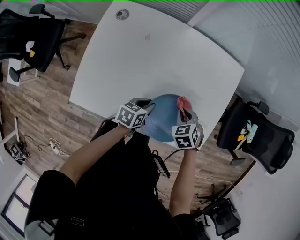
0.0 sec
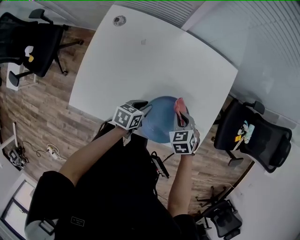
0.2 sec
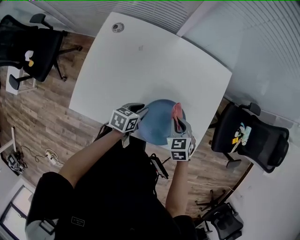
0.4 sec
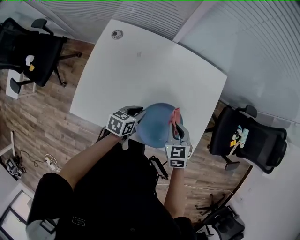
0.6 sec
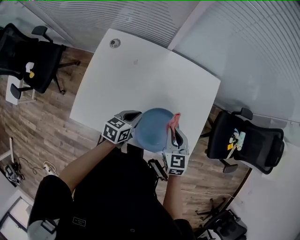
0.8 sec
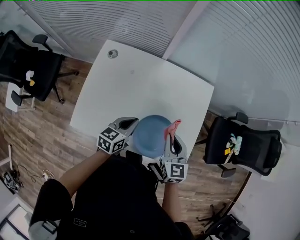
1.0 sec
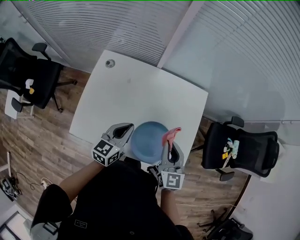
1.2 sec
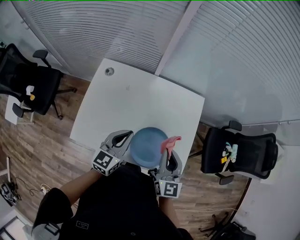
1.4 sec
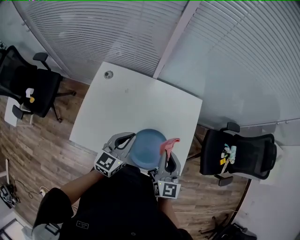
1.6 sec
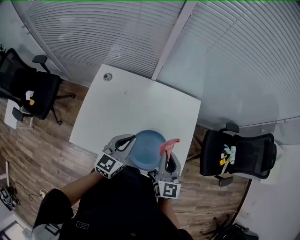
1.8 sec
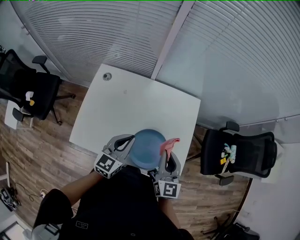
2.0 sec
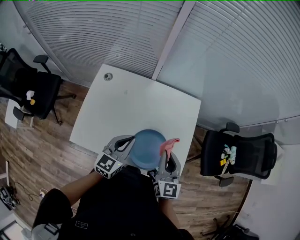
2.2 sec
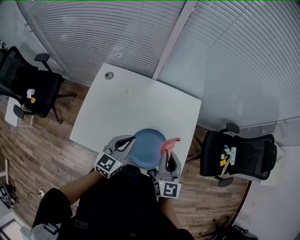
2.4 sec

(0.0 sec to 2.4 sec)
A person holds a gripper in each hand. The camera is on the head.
0.0 sec - 1.2 sec: The two grippers go some 25 cm upward. The left gripper turns by about 40 degrees. The right gripper tilts its fingers roughly 50 degrees upward.
1.2 sec - 2.4 sec: The left gripper ends up approximately 5 cm from where it was.

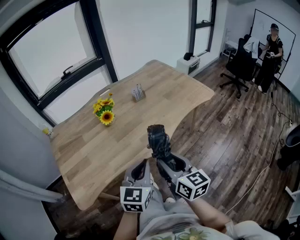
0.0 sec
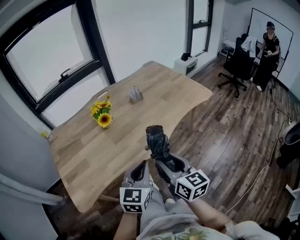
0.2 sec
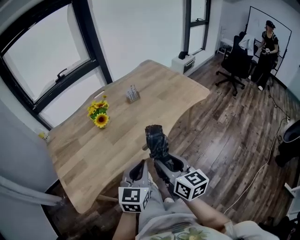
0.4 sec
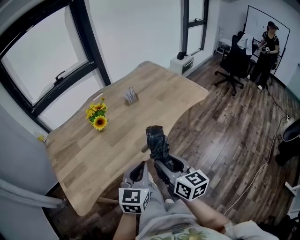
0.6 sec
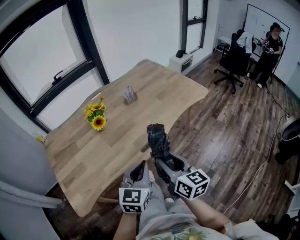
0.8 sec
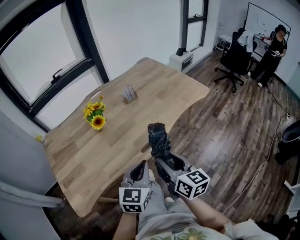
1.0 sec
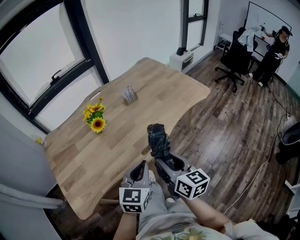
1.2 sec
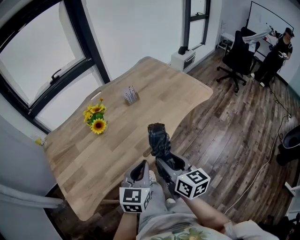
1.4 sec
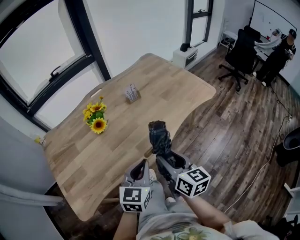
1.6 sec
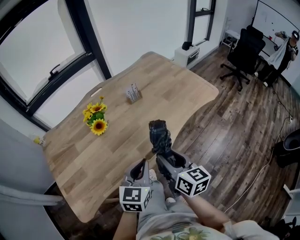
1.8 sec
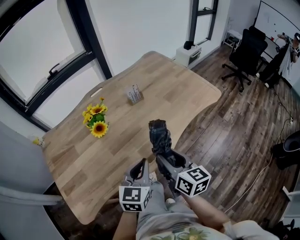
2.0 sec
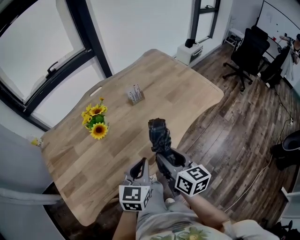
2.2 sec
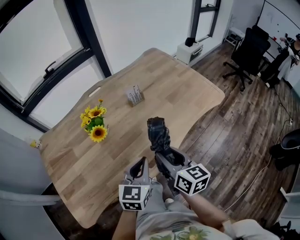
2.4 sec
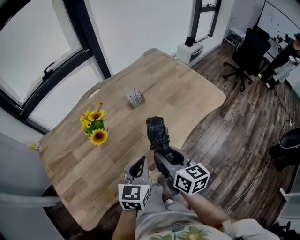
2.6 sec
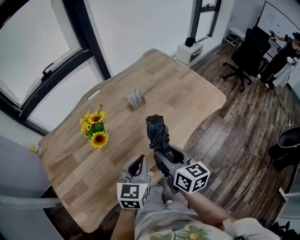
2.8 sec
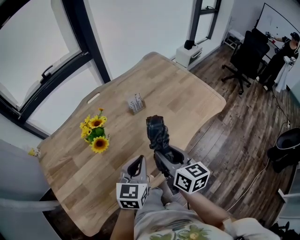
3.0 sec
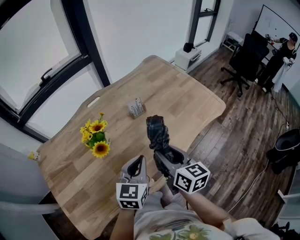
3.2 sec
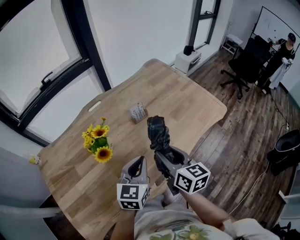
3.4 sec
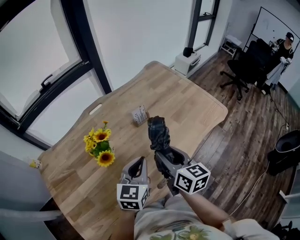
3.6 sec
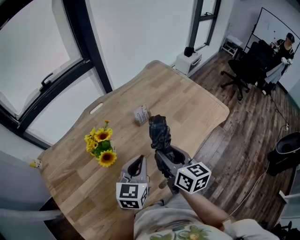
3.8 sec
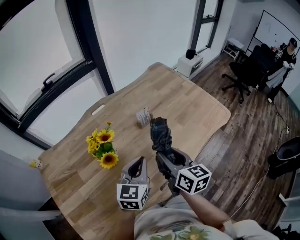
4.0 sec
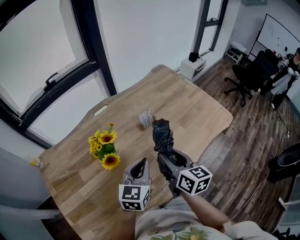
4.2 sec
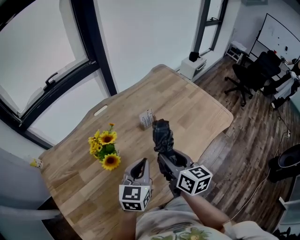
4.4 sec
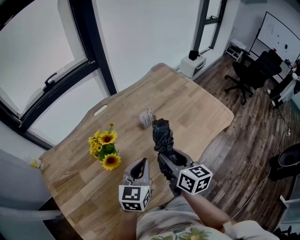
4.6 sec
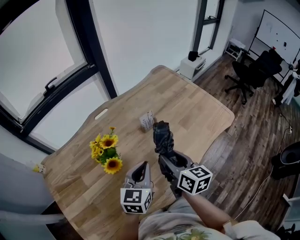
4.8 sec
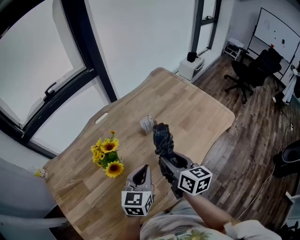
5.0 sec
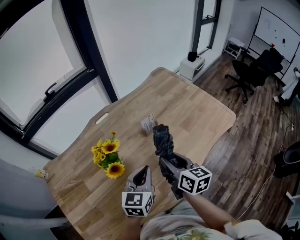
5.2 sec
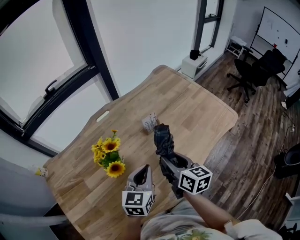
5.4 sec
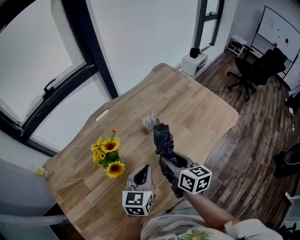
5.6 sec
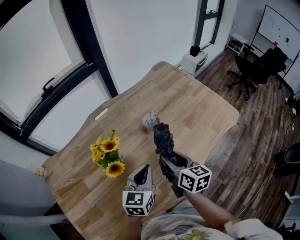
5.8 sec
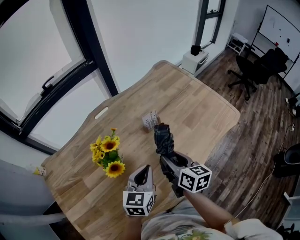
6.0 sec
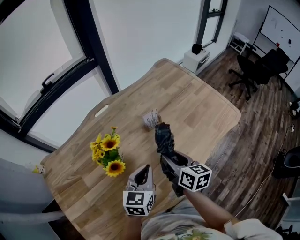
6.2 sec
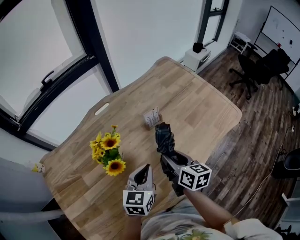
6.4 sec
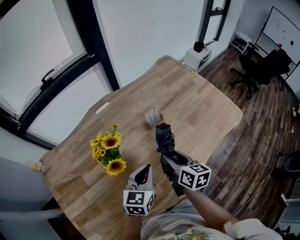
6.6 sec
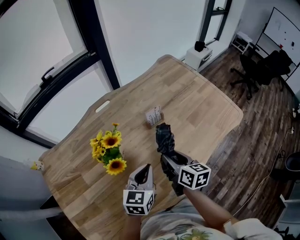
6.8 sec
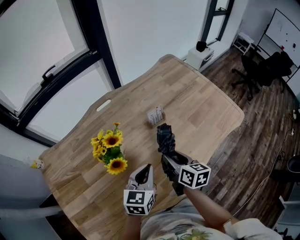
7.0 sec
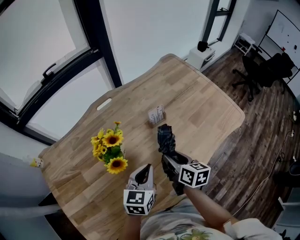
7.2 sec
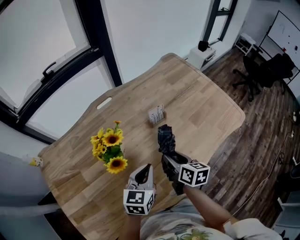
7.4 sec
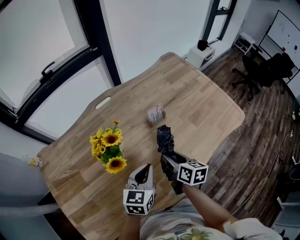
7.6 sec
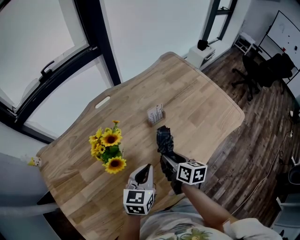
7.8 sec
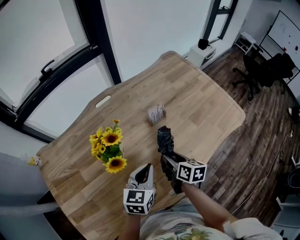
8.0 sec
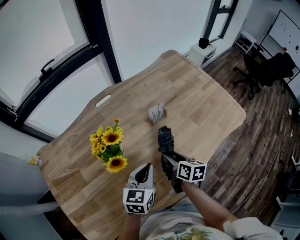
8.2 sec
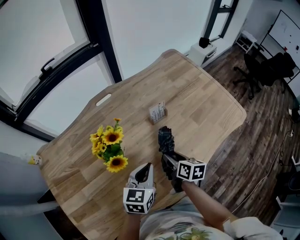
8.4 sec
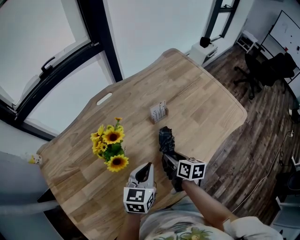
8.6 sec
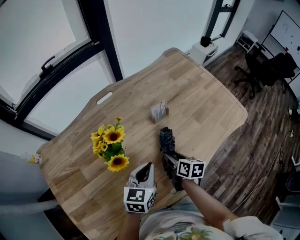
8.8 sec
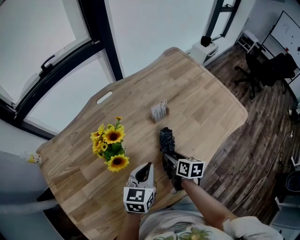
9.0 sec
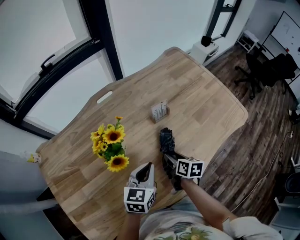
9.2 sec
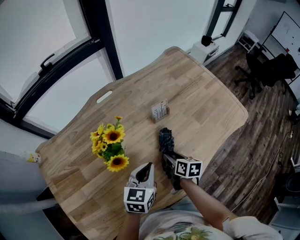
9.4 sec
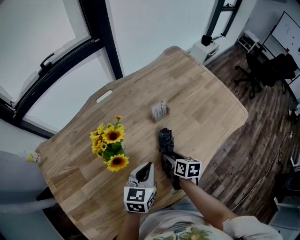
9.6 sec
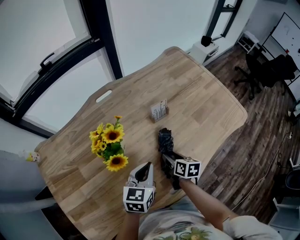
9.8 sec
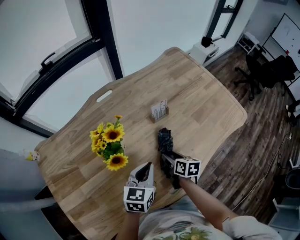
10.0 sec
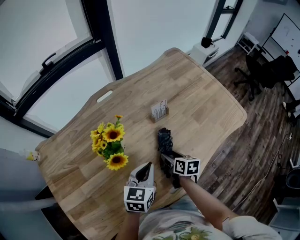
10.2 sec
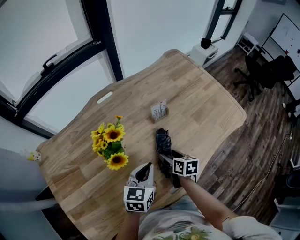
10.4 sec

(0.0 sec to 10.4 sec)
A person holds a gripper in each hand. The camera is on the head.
0.0 sec - 1.4 sec: Both grippers travel together forward, approximately 5 cm.
1.4 sec - 3.0 sec: Both grippers move forward, about 20 cm.
3.0 sec - 4.4 sec: Both grippers travel together forward, roughly 5 cm.
4.4 sec - 6.0 sec: The right gripper moves downward, about 5 cm.
6.0 sec - 7.4 sec: The right gripper heads downward, covering roughly 5 cm.
7.4 sec - 9.0 sec: The right gripper moves downward, some 10 cm.
9.0 sec - 10.4 sec: The right gripper opens.

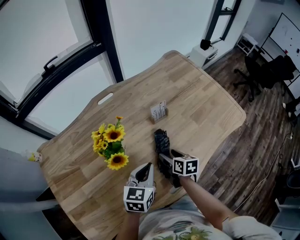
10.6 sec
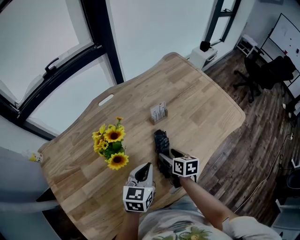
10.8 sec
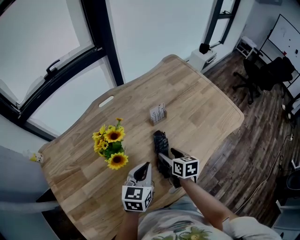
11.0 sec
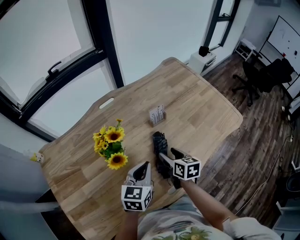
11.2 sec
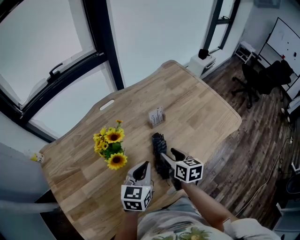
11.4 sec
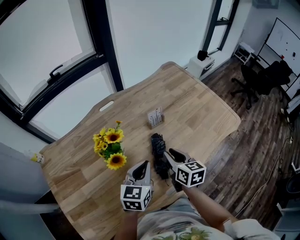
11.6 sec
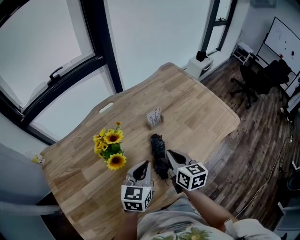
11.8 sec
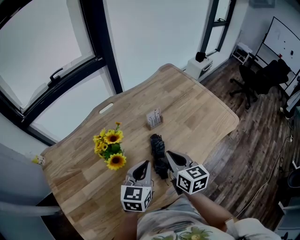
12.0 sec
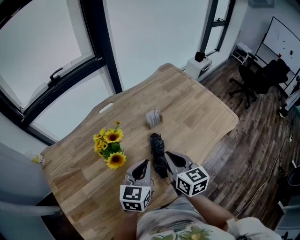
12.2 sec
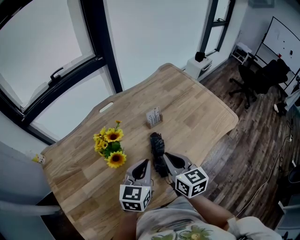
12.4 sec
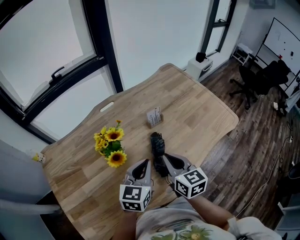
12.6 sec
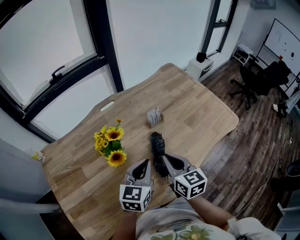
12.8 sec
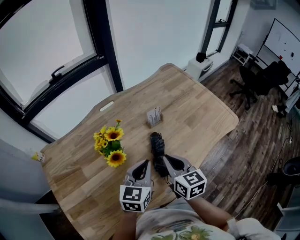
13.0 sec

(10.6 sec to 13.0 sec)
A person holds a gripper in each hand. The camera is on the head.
10.6 sec - 11.8 sec: The right gripper moves upward, approximately 15 cm, turns by about 20 degrees, and closes up. The left gripper travels upward by roughly 5 cm.
11.8 sec - 13.0 sec: The right gripper moves roughly 5 cm.

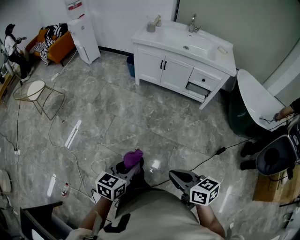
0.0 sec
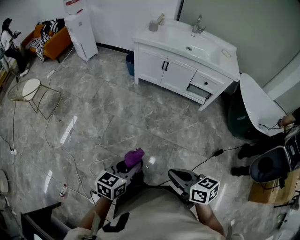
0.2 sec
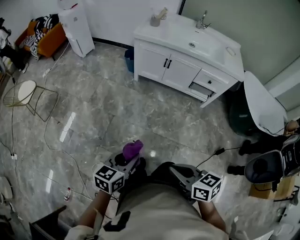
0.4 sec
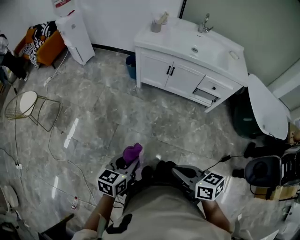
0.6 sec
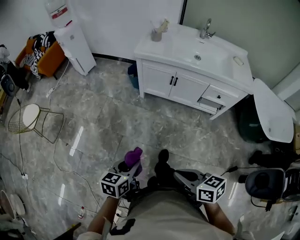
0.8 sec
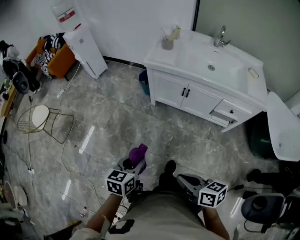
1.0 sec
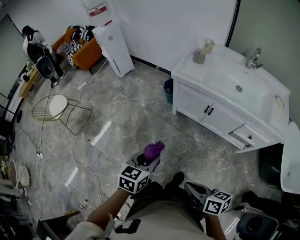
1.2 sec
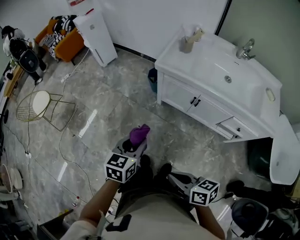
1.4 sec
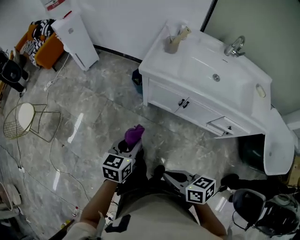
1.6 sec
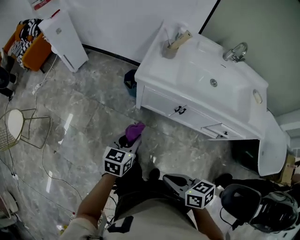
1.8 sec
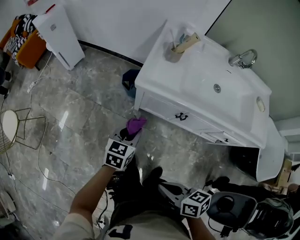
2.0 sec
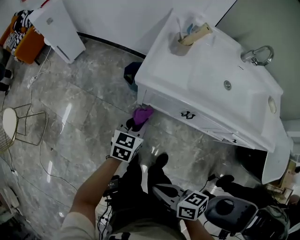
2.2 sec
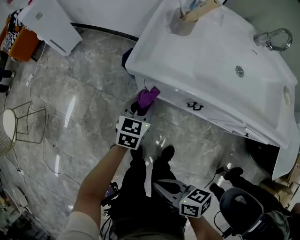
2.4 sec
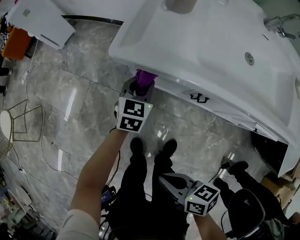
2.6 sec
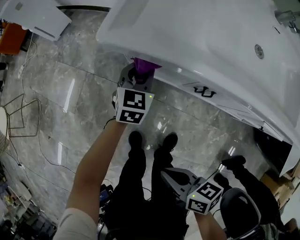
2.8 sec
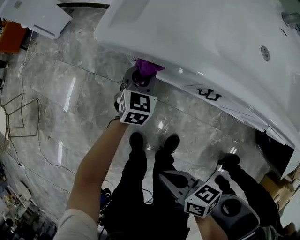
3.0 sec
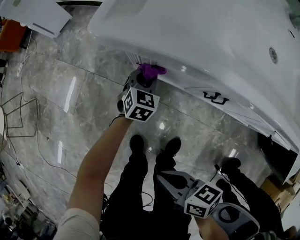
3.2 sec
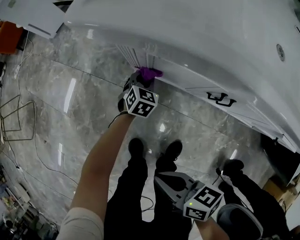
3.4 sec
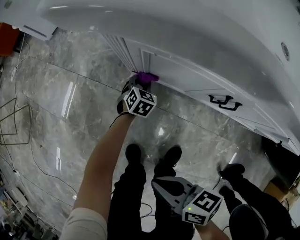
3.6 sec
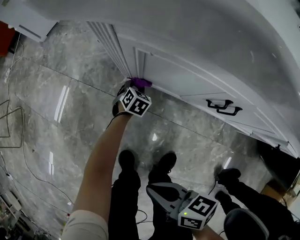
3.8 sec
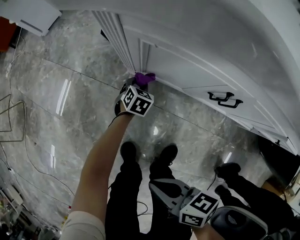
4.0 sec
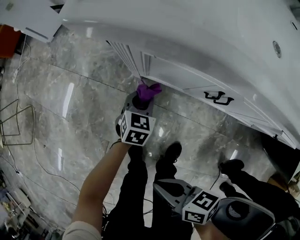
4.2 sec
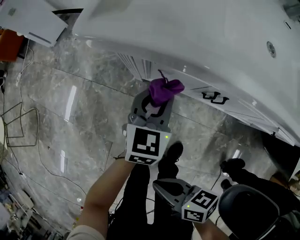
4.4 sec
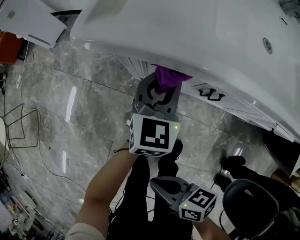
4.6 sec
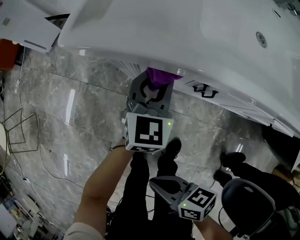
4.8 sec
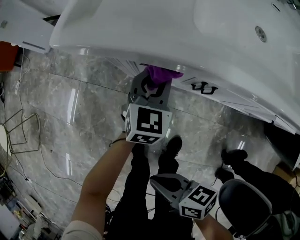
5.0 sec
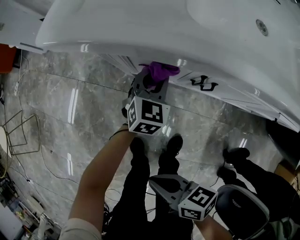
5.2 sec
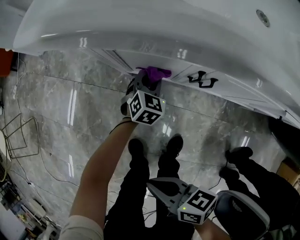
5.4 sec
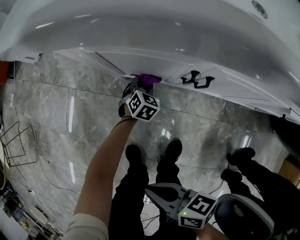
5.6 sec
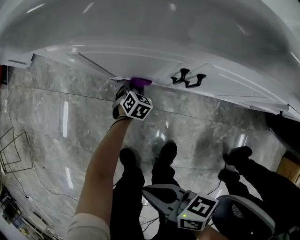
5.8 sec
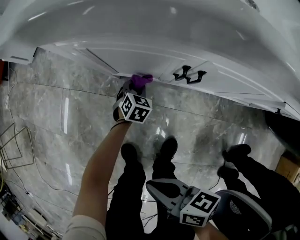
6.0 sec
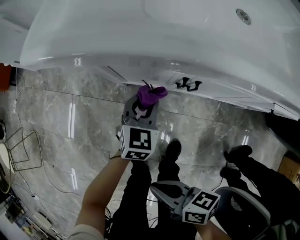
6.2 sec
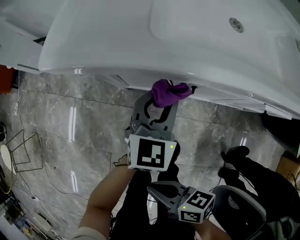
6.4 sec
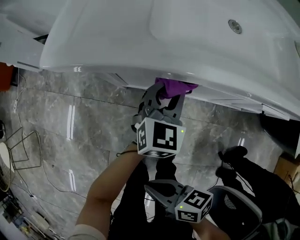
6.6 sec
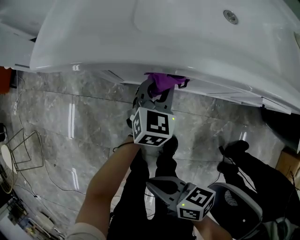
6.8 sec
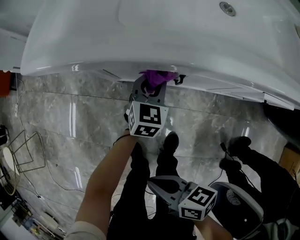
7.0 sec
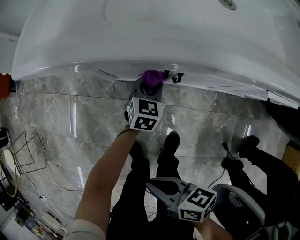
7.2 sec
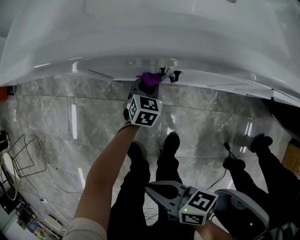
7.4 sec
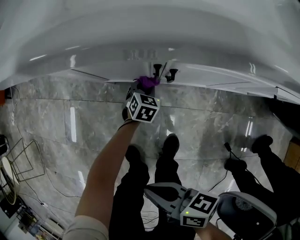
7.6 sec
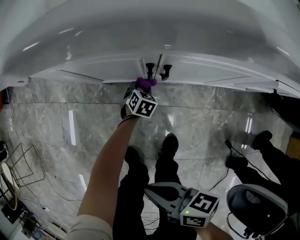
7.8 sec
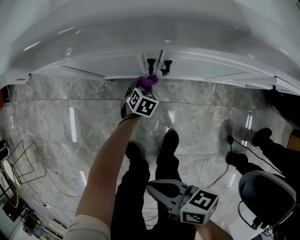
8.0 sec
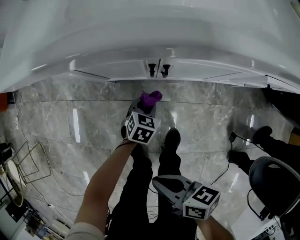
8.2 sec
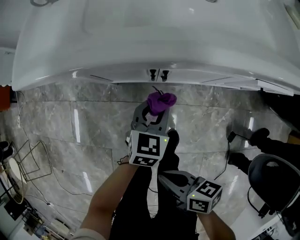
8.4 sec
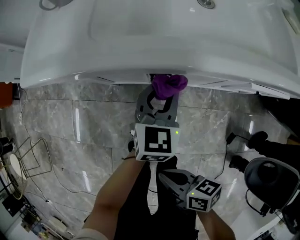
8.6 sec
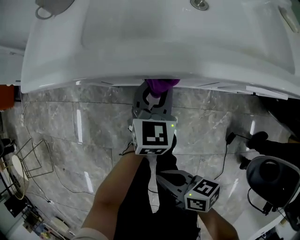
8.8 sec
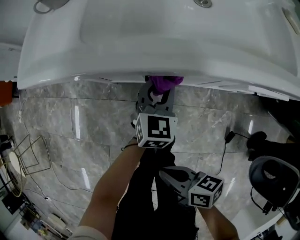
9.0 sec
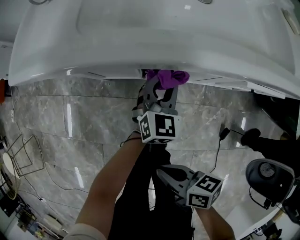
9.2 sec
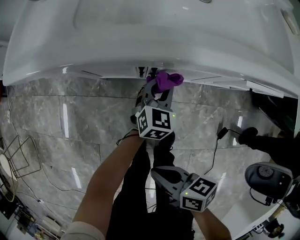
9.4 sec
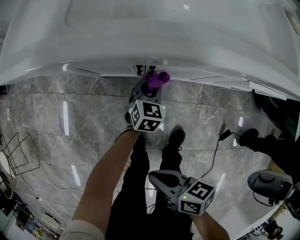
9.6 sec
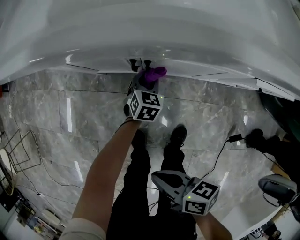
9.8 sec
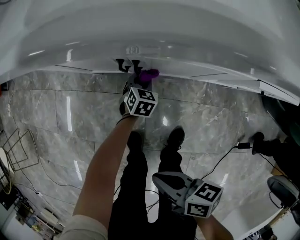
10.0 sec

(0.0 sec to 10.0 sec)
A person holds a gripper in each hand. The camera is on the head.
0.0 sec - 1.4 sec: Both grippers are carried forward, about 60 cm.
1.4 sec - 2.8 sec: The left gripper moves forward, downward and to the right, approximately 50 cm. The right gripper goes roughly 30 cm downward and forward.
2.8 sec - 4.2 sec: The left gripper heads downward and backward, covering some 20 cm. Meanwhile the right gripper goes about 10 cm downward.
4.2 sec - 5.8 sec: The right gripper shifts by roughly 5 cm. The left gripper heads downward and to the right, covering some 20 cm, and rotates roughly 30 degrees.
5.8 sec - 7.2 sec: The right gripper goes approximately 5 cm upward; the left gripper moves upward, about 20 cm, and swivels roughly 20 degrees.
7.2 sec - 8.6 sec: The right gripper travels to the right by roughly 5 cm; the left gripper moves upward, about 15 cm.
8.6 sec - 10.0 sec: The left gripper goes approximately 30 cm downward, and swivels roughly 30 degrees. Meanwhile the right gripper travels to the right by roughly 5 cm.
